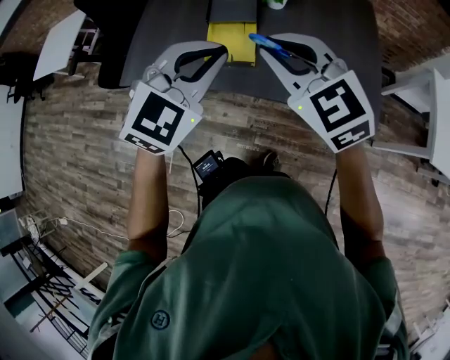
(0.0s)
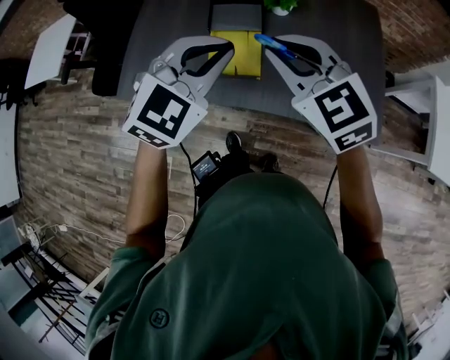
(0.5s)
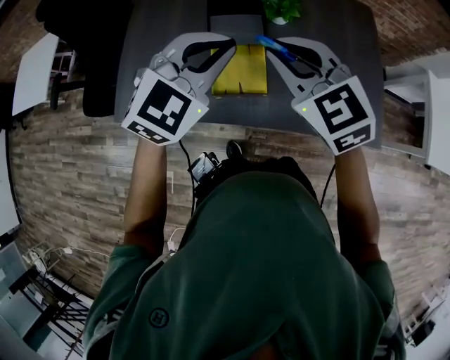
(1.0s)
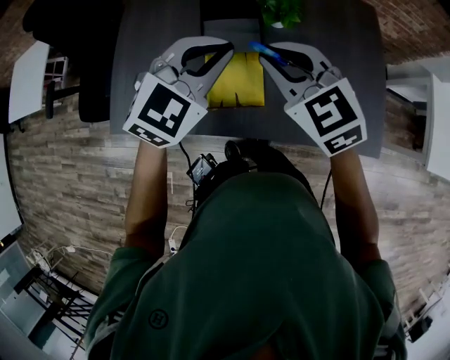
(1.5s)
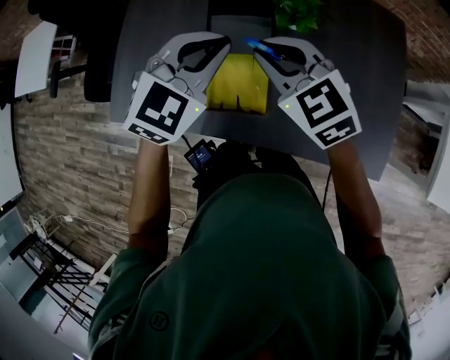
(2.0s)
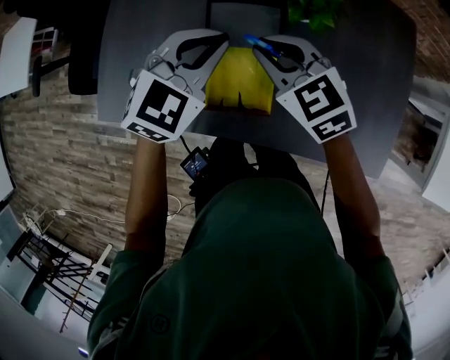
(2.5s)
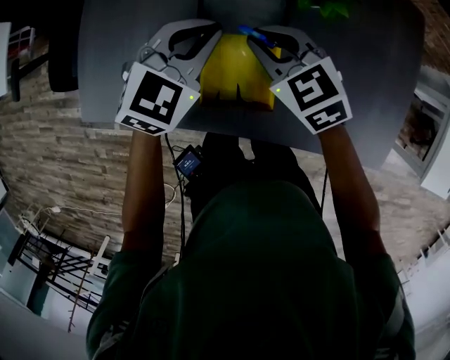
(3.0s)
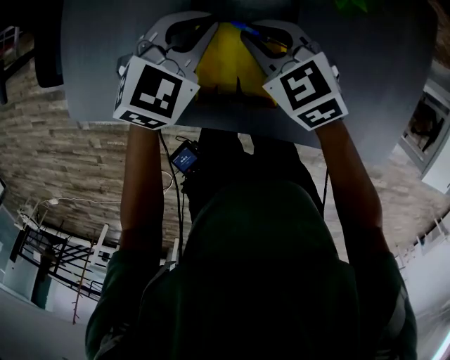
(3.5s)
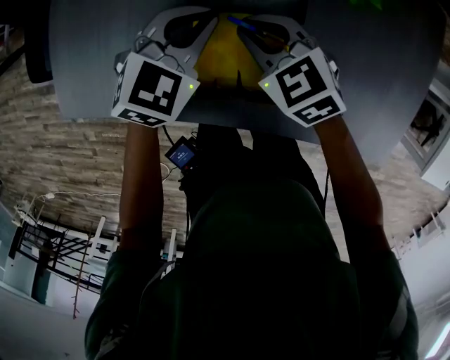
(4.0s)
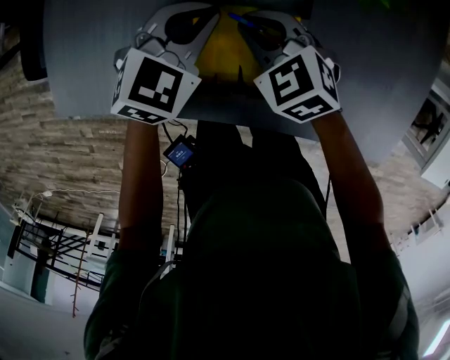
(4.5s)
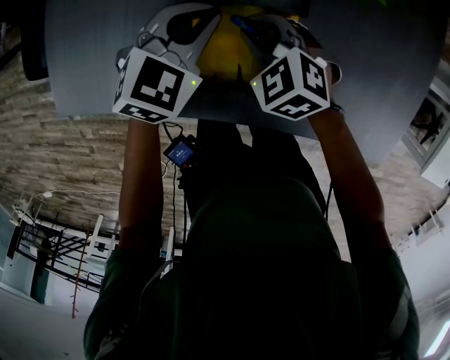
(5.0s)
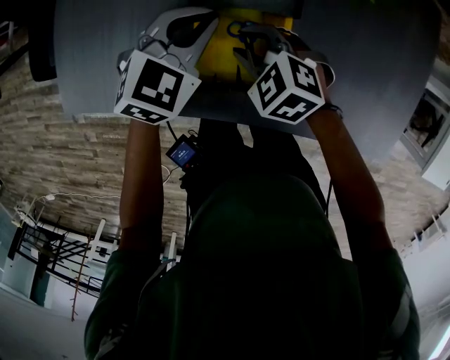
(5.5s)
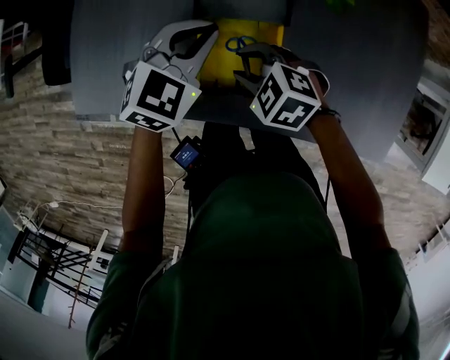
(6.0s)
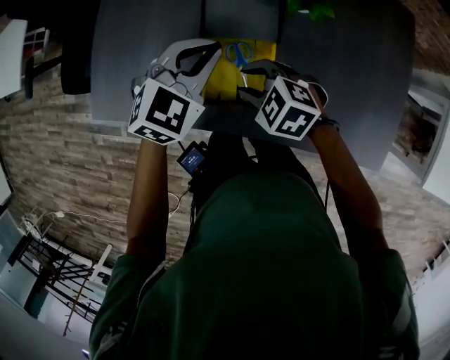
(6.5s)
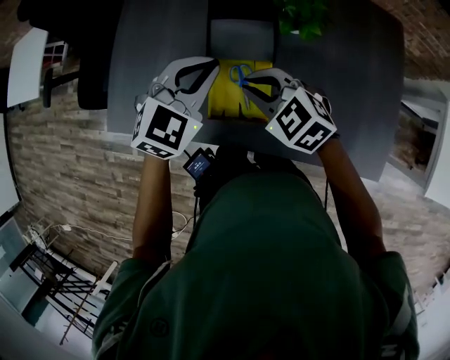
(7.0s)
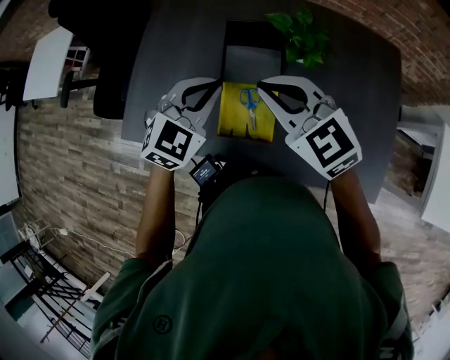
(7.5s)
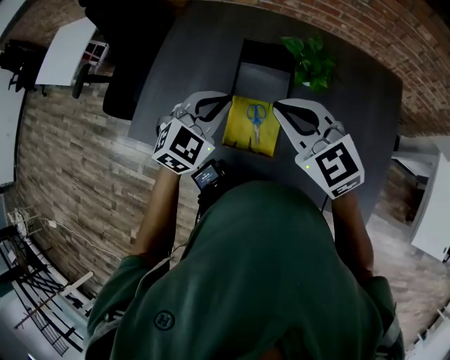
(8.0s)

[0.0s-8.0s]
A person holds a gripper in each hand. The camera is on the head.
0.0s to 2.0s: Both grippers travel together forward, approximately 30 cm.
2.0s to 4.0s: The two grippers go roughly 25 cm downward.
4.0s to 6.0s: The left gripper moves upward, about 5 cm. Meanwhile the right gripper travels backward by roughly 10 cm, swivels some 20 degrees, and opens up.
6.0s to 8.0s: The right gripper shifts about 30 cm upward, points its fingers some 30 degrees further upward, and closes its fingers. Meanwhile the left gripper shifts some 15 cm upward.

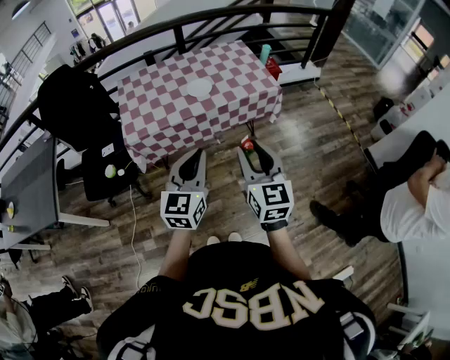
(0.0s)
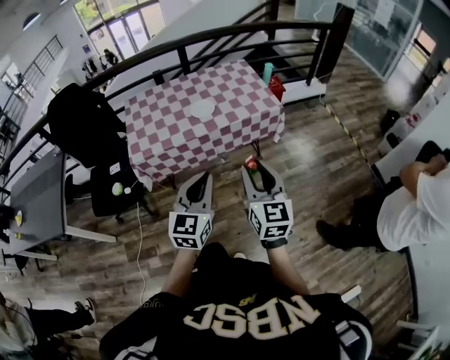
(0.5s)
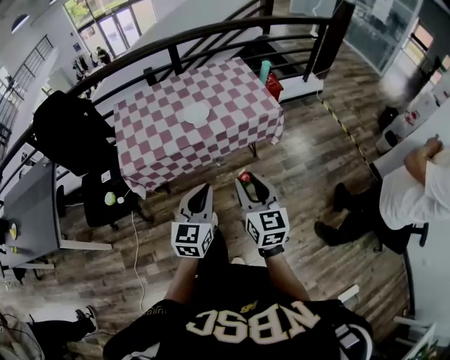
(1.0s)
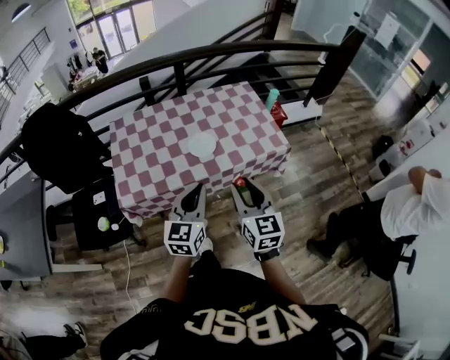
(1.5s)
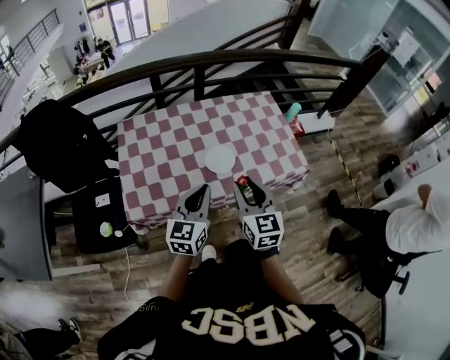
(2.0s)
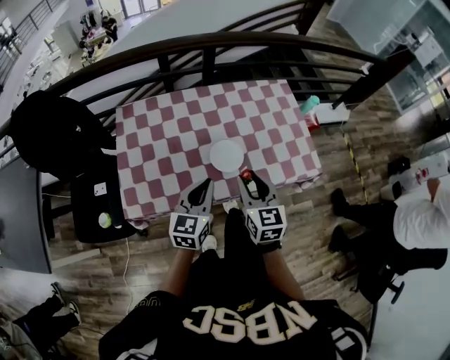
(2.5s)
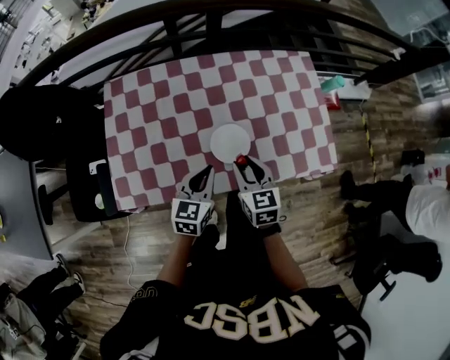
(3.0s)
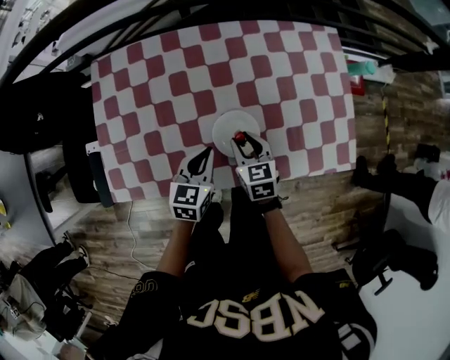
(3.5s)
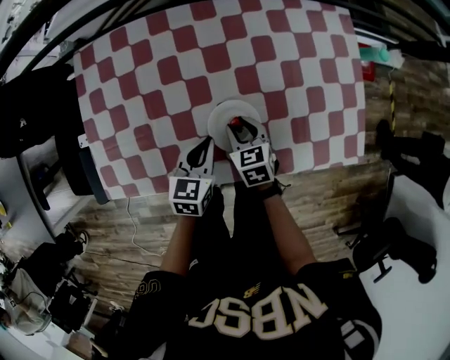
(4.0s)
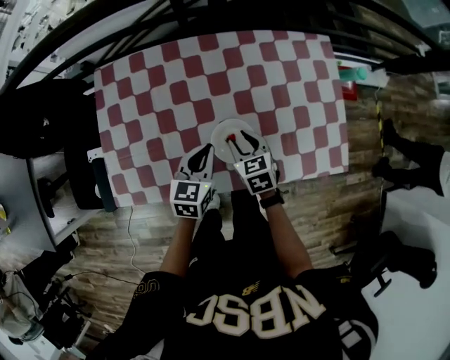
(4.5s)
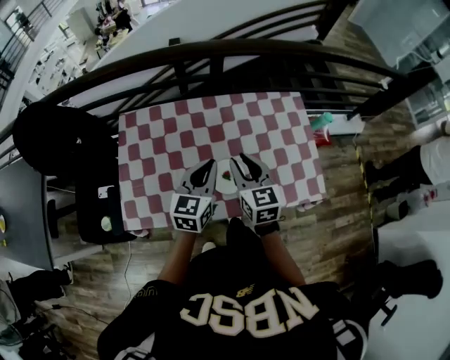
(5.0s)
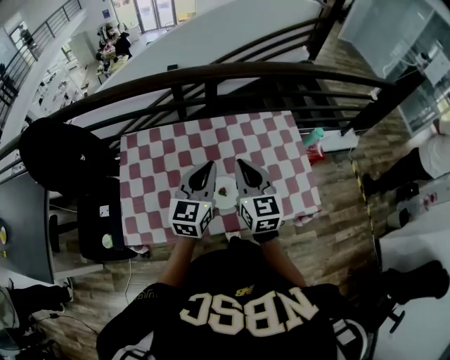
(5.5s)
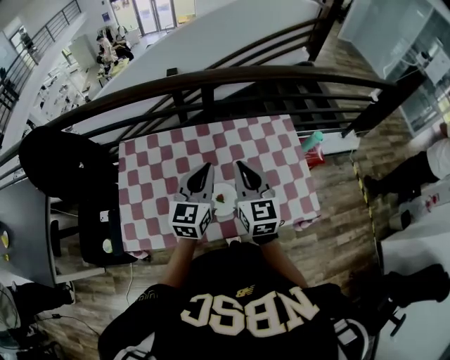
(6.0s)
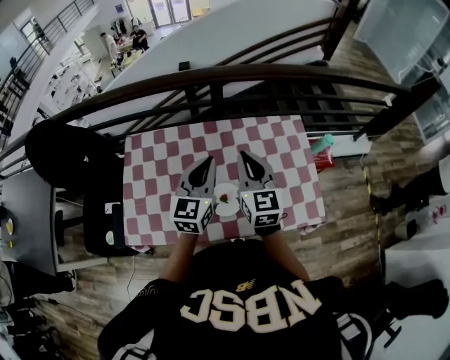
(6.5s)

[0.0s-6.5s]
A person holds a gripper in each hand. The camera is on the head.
0.0s to 2.0s: Both grippers move forward, roughly 35 cm.
2.0s to 4.5s: Both grippers travel together downward and forward, some 35 cm. The right gripper angles its fingers downward, by about 30 degrees; the left gripper swivels some 30 degrees.
4.5s to 6.5s: Both grippers move upward, some 30 cm. The right gripper tips its fingers upward by roughly 40 degrees, and closes its fingers. The left gripper rotates roughly 30 degrees.

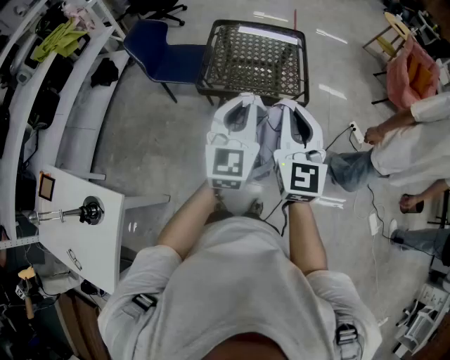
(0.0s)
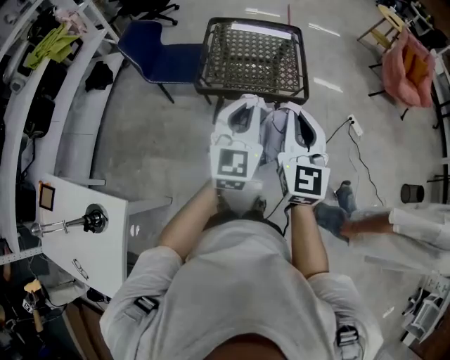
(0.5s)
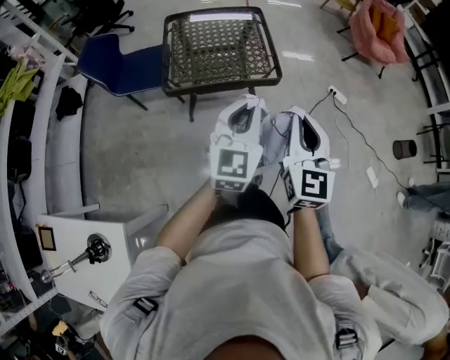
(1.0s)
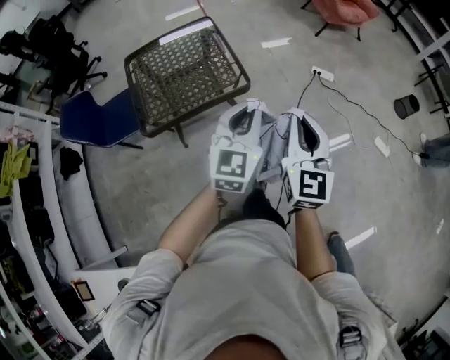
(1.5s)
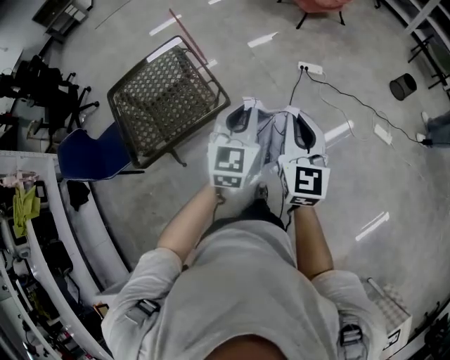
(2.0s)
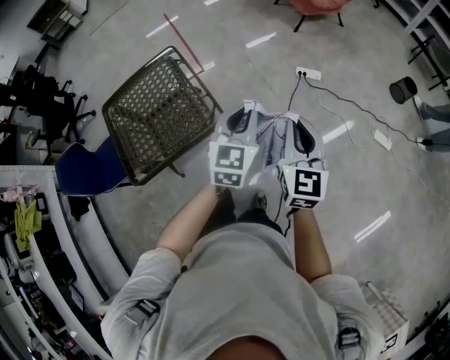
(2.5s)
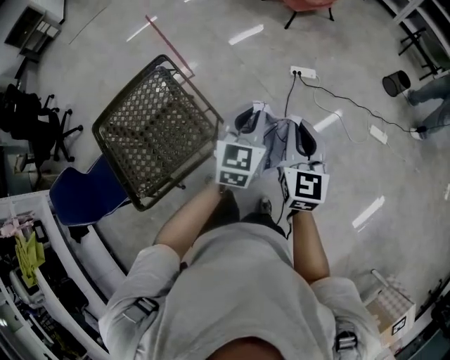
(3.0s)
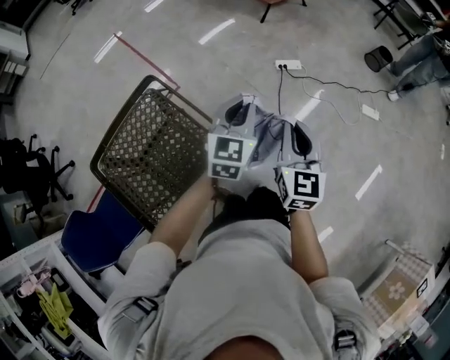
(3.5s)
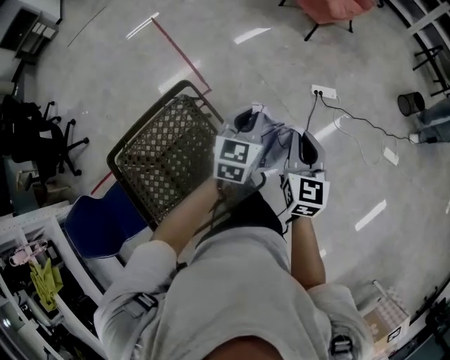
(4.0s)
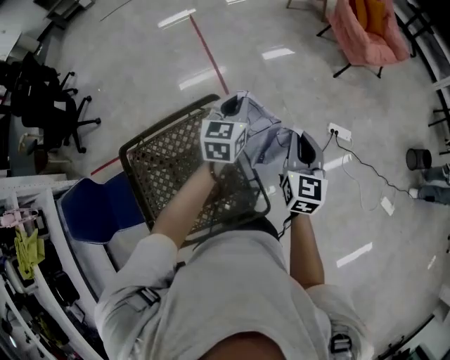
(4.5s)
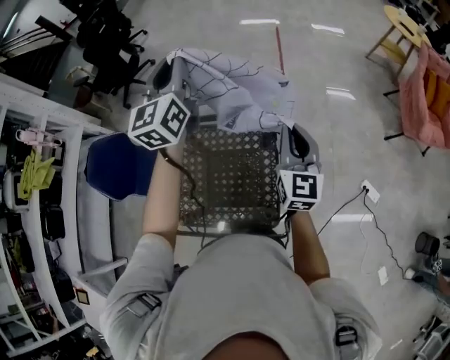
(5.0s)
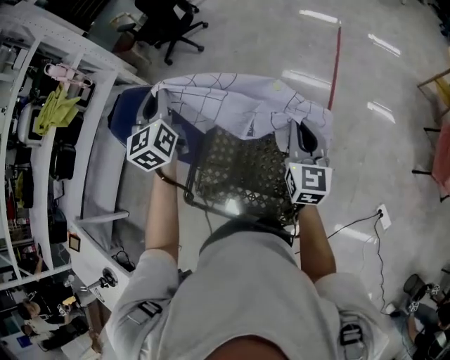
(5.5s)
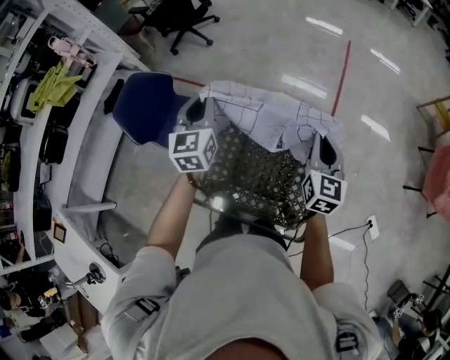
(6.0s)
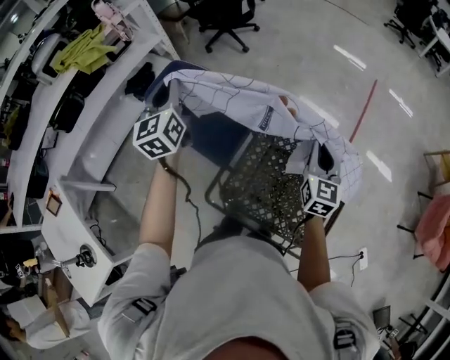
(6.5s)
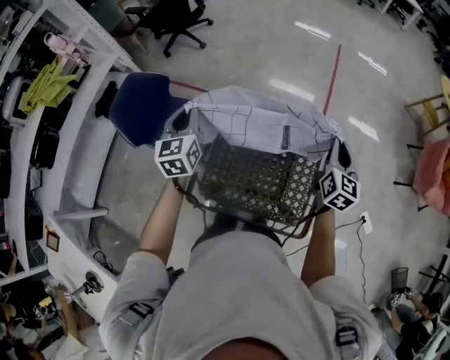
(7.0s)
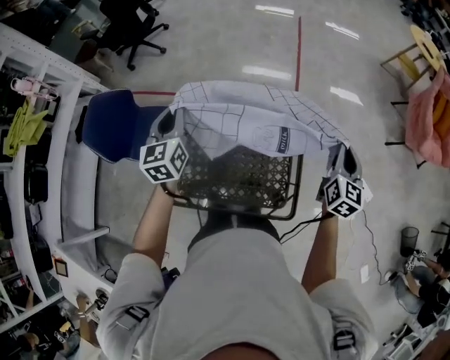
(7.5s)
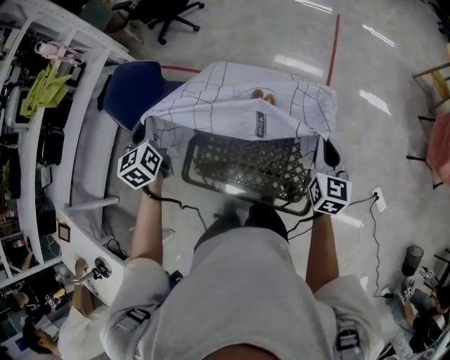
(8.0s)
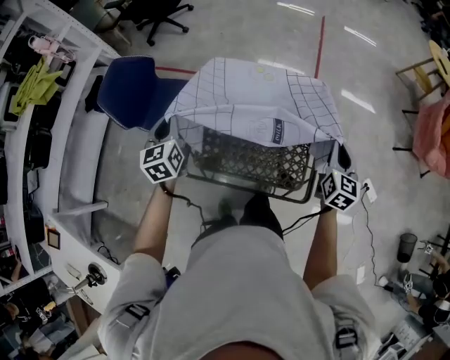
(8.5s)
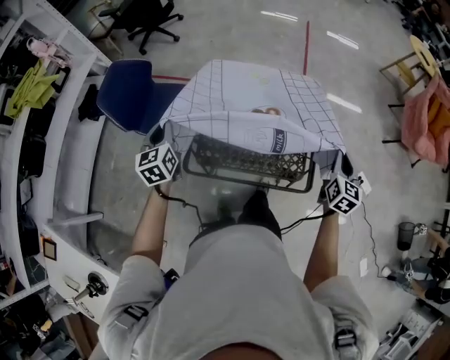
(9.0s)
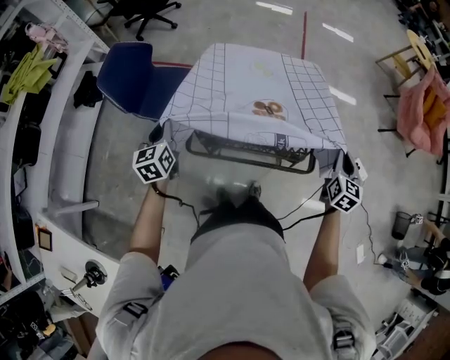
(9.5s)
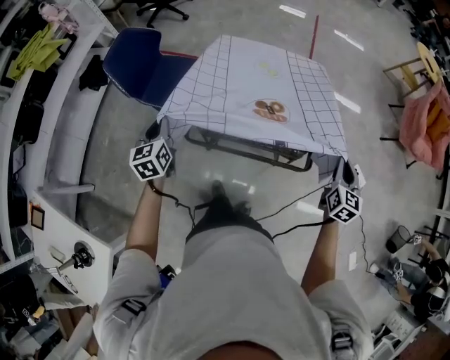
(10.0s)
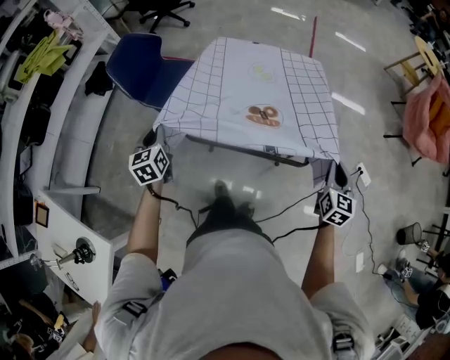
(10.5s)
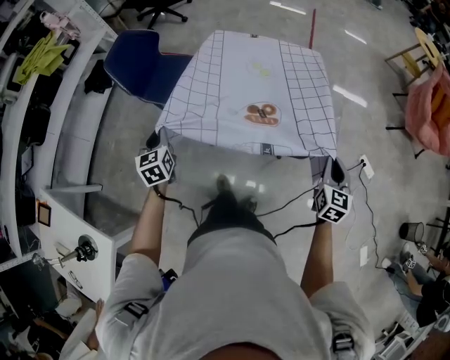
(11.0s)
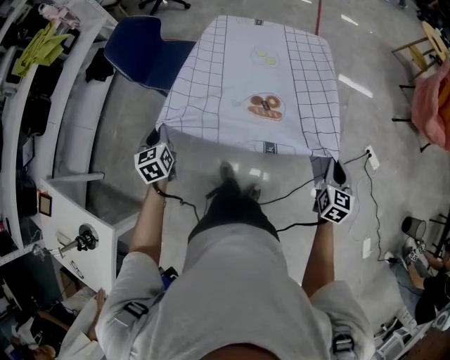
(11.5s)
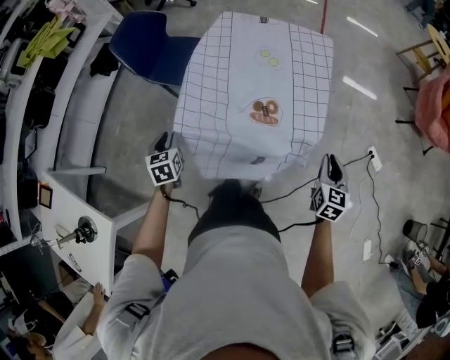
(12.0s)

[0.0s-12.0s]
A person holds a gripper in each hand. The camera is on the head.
0.0s to 2.0s: The left gripper moves some 35 cm, and rotates roughly 40 degrees, while the right gripper shifts by about 30 cm, and rotates some 40 degrees.
2.0s to 4.0s: The two grippers travel together, forward and to the left, about 40 cm.
4.0s to 6.0s: The two grippers travel together, about 50 cm. The left gripper changes its angle by roughly 80 degrees, while the right gripper rotates about 50 degrees.
6.0s to 8.0s: The left gripper moves approximately 10 cm upward and comes back.
8.0s to 10.0s: The left gripper travels backward and downward by approximately 25 cm. The right gripper moves backward, some 25 cm.
10.0s to 12.0s: The grippers both shift backward and downward by roughly 15 cm. The left gripper opens its fingers.
